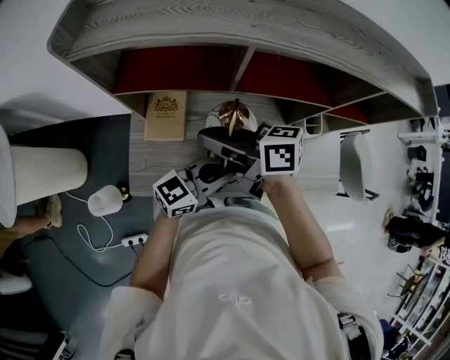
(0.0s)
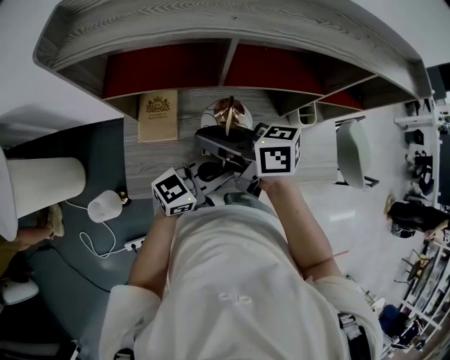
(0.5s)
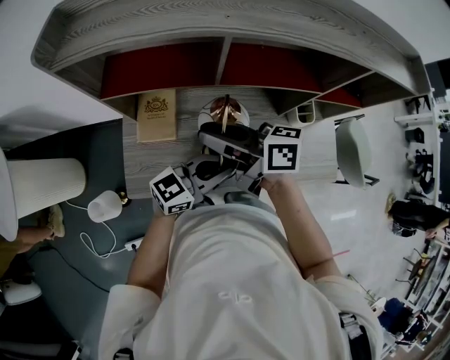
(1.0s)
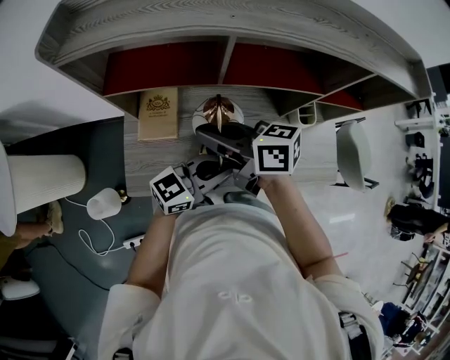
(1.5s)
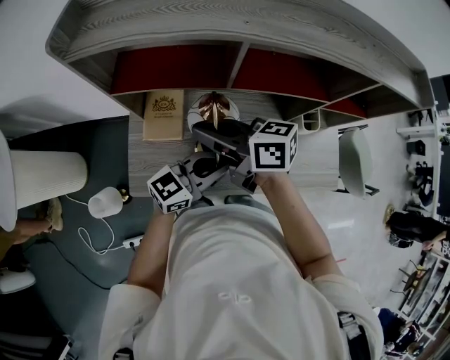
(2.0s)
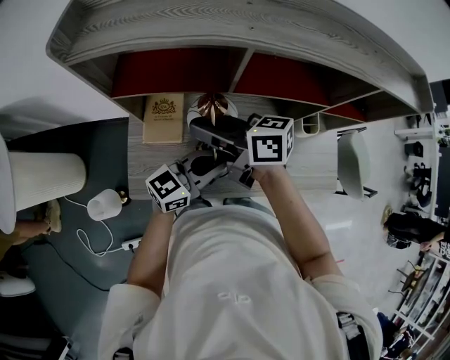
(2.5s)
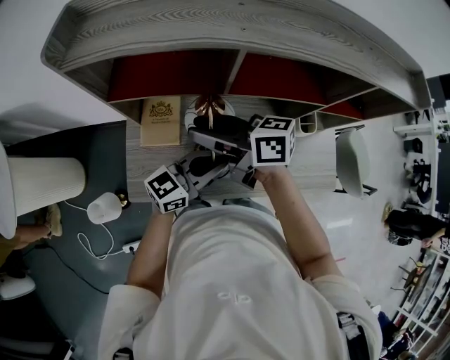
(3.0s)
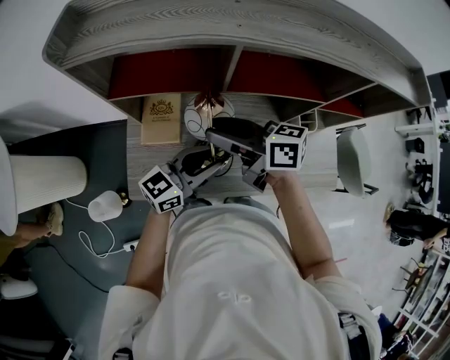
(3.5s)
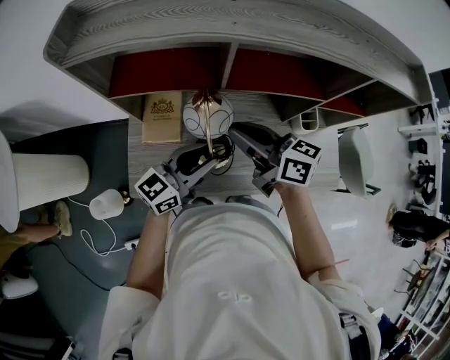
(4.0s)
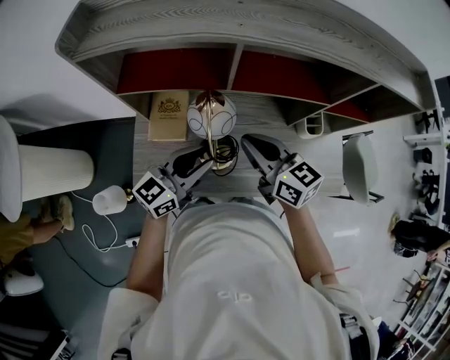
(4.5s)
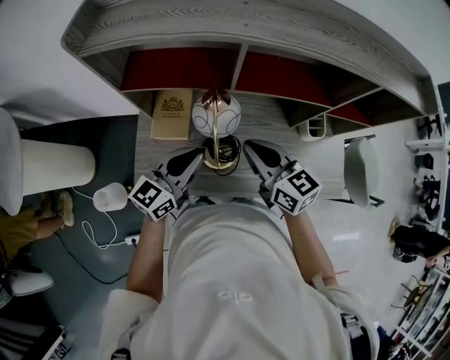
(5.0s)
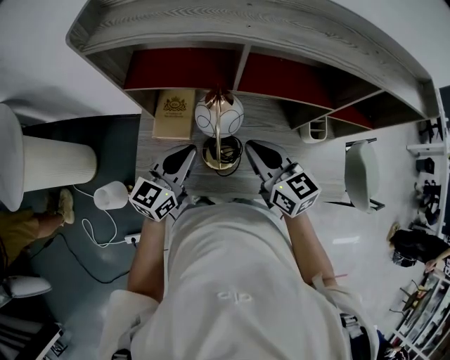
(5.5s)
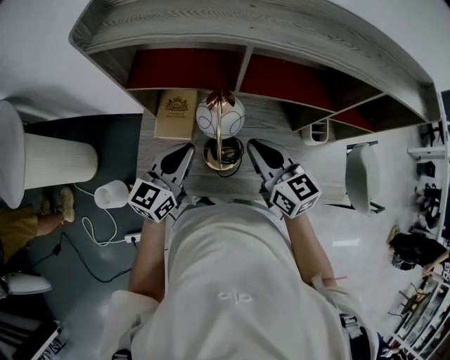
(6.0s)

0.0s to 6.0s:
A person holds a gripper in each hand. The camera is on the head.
0.0s to 2.0s: The grippers move only a little.
2.0s to 4.0s: The right gripper shifts by some 10 cm, and opens, then closes once more, while the left gripper opens.
4.0s to 6.0s: The left gripper shifts roughly 10 cm to the left, turns by about 30 degrees, and closes its fingers; the right gripper rotates approximately 30 degrees.

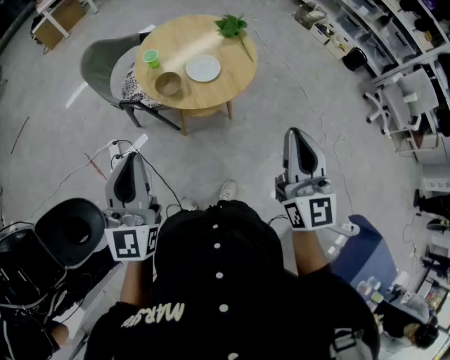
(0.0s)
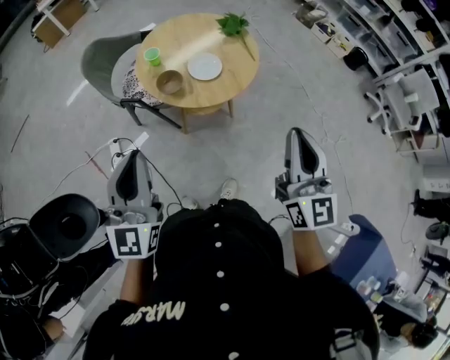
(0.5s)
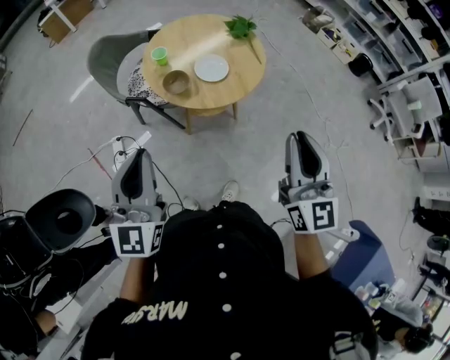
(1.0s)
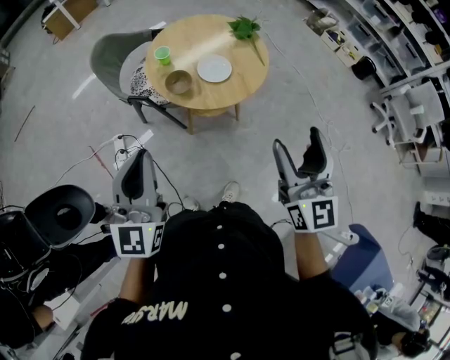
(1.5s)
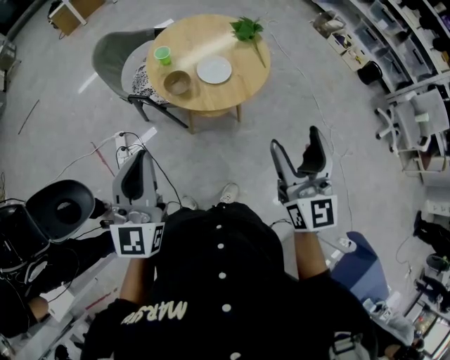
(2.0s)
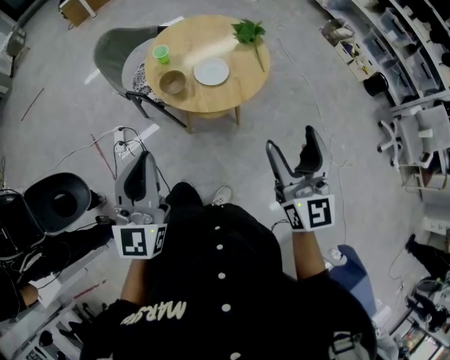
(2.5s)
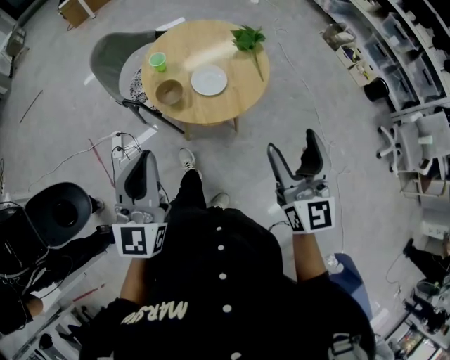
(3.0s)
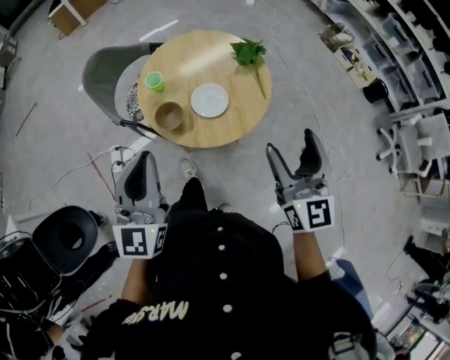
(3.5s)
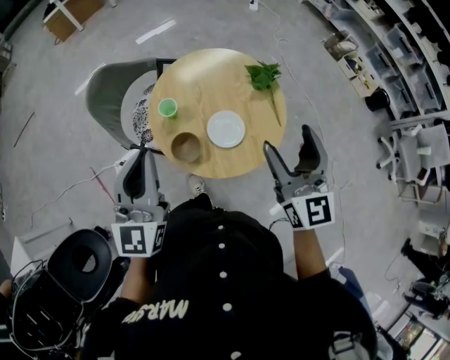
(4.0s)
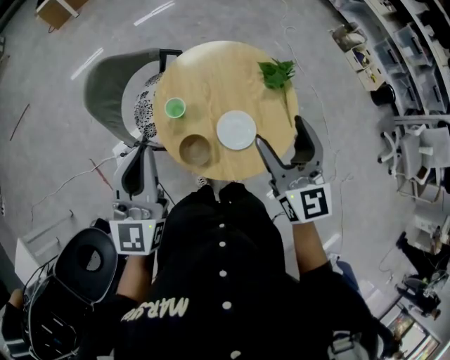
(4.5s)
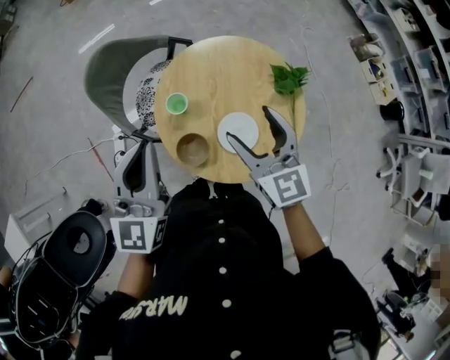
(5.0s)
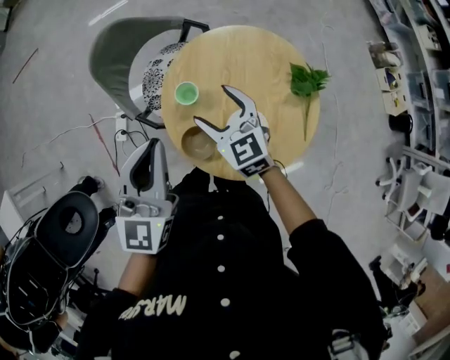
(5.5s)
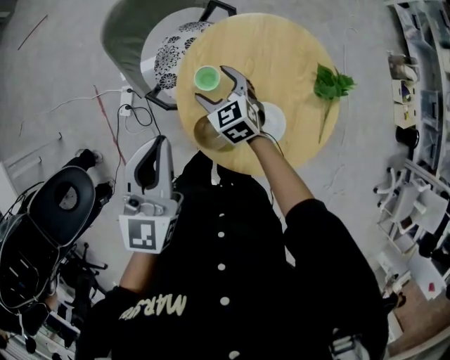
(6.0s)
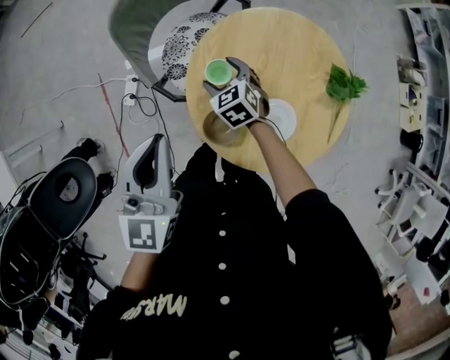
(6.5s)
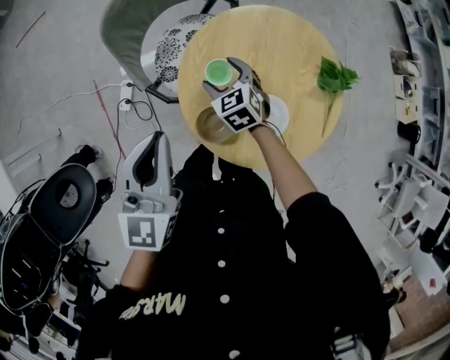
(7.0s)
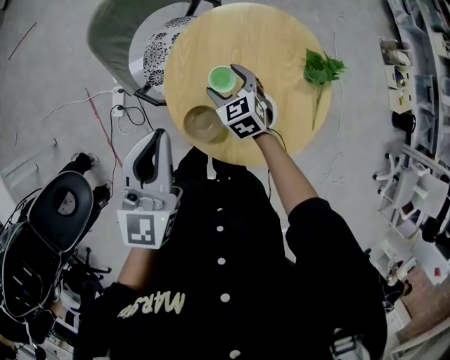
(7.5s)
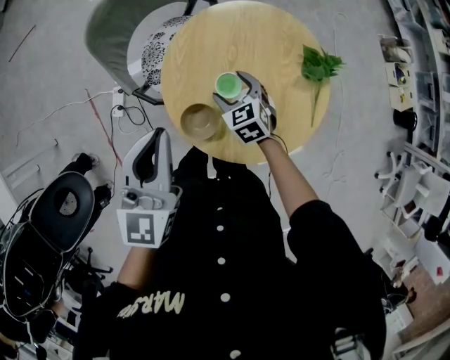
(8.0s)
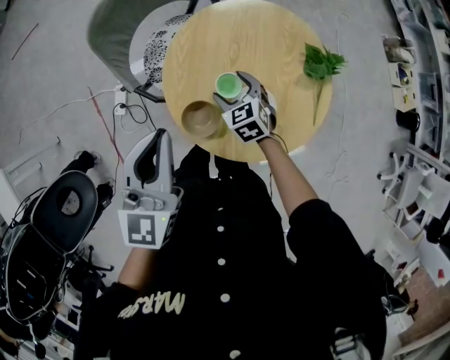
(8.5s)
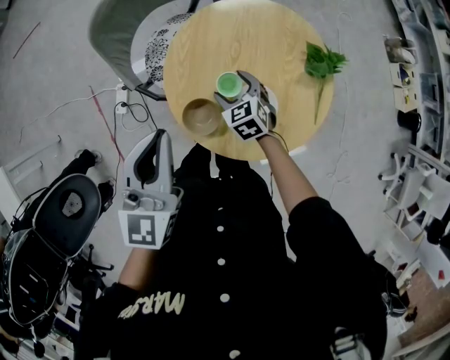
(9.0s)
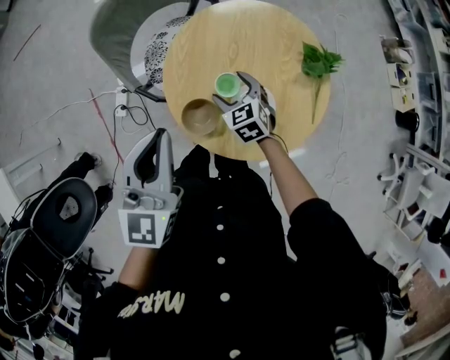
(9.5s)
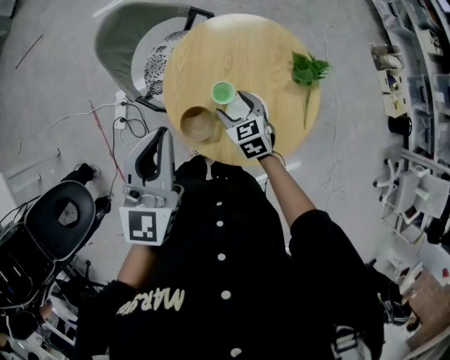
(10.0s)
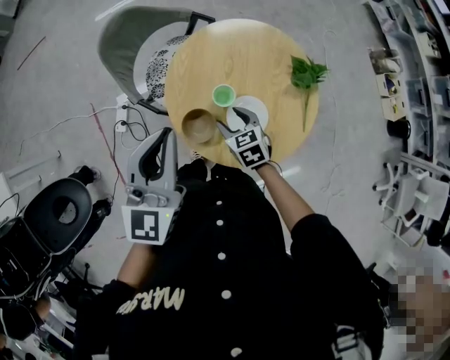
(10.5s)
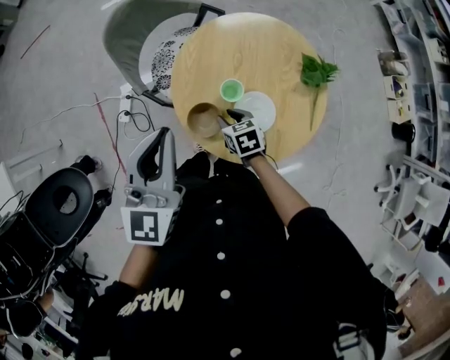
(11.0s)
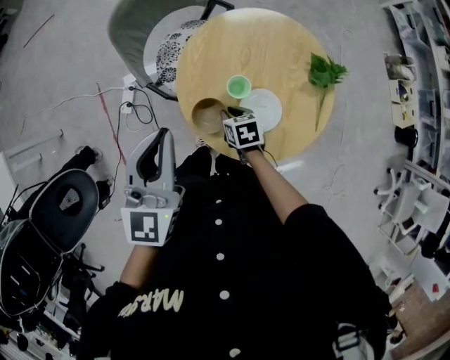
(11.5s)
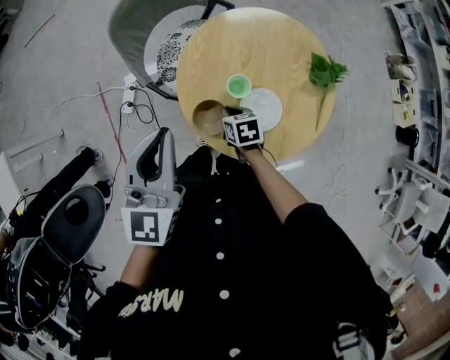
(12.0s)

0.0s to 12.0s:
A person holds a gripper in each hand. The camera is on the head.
0.0s to 2.0s: The right gripper opens its fingers.
2.0s to 4.0s: The two grippers go approximately 35 cm forward.
4.0s to 6.0s: The left gripper travels downward by some 10 cm, and changes its angle by roughly 20 degrees. The right gripper ends up about 50 cm from where it was, and tilts its fingers about 40 degrees downward.
6.0s to 8.0s: The right gripper goes some 10 cm to the right and backward.
8.0s to 10.0s: The right gripper goes approximately 5 cm backward; the left gripper ends up some 5 cm from where it was.
10.0s to 12.0s: The right gripper heads downward and to the left, covering approximately 10 cm, rotates roughly 30 degrees, and closes.

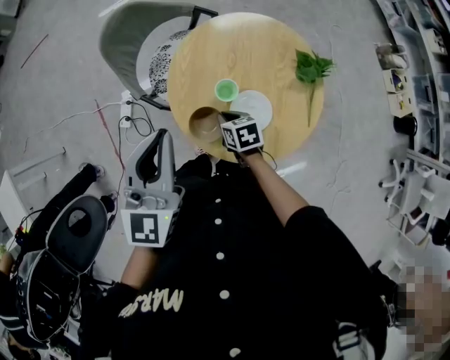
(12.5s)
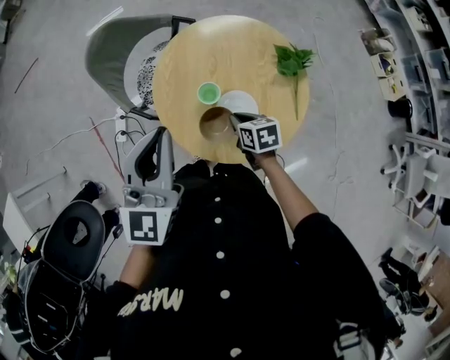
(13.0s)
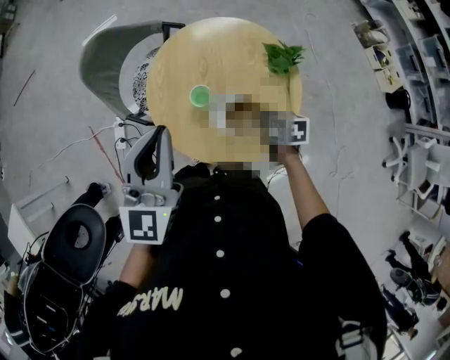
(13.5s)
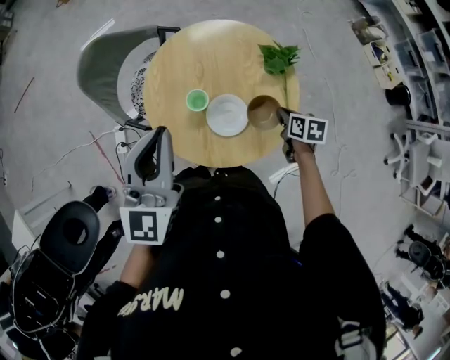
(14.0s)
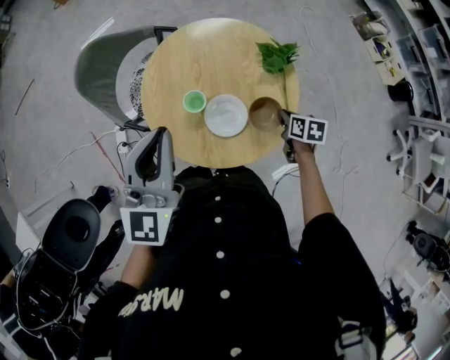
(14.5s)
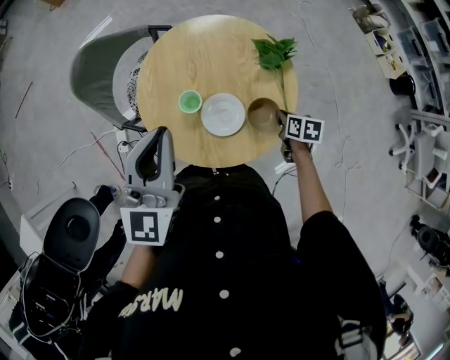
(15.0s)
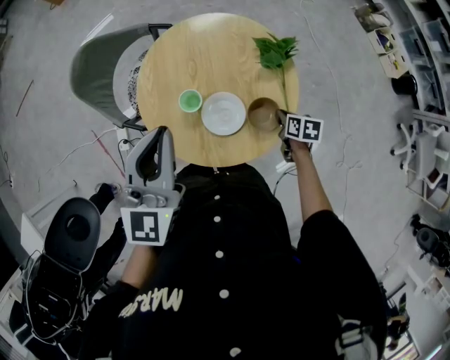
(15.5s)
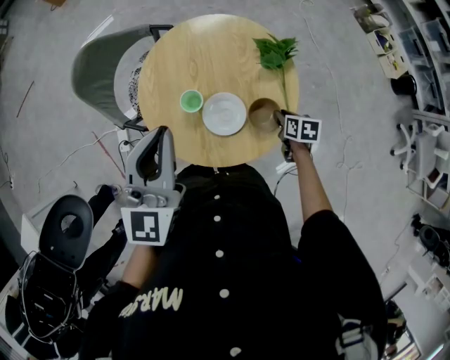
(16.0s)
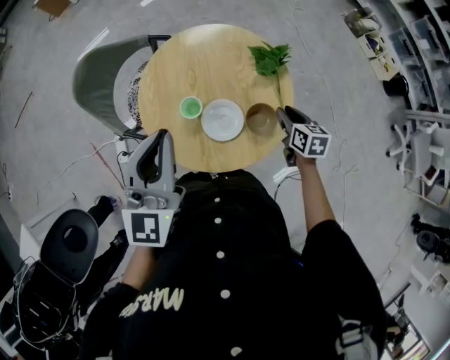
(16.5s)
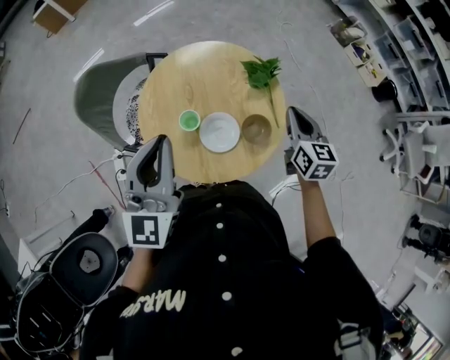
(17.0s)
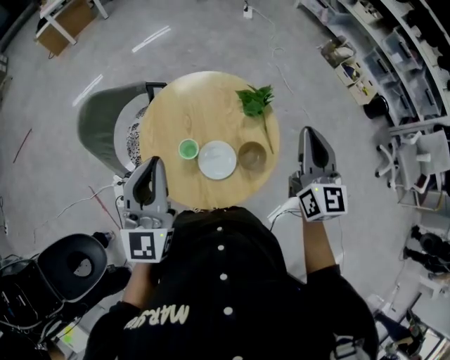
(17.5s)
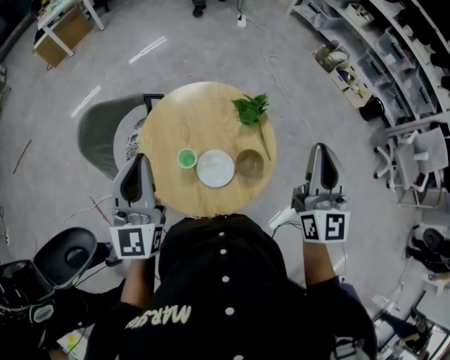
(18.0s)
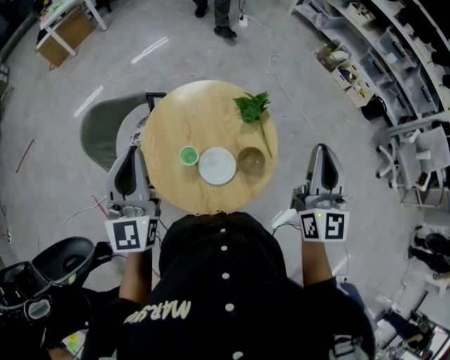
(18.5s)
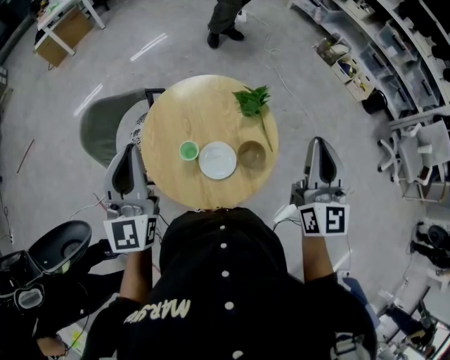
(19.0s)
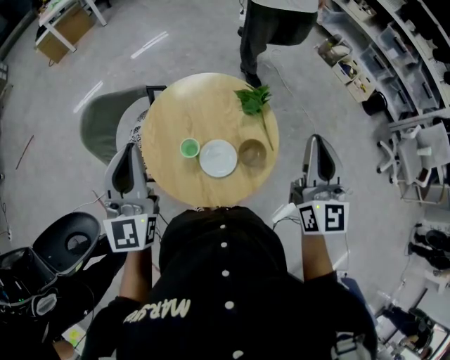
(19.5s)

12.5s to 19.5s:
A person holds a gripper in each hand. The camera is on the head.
12.5s to 14.5s: The left gripper is displaced to the right by about 10 cm, while the right gripper moves to the right, approximately 30 cm, and rotates approximately 30 degrees.
14.5s to 16.0s: There are only small adjustments of the grippers.
16.0s to 17.5s: The right gripper goes about 40 cm upward, and angles its fingers upward, by about 60 degrees. Meanwhile the left gripper changes place by roughly 5 cm.
17.5s to 19.5s: The right gripper travels upward and backward by roughly 5 cm. Meanwhile the left gripper ends up approximately 5 cm from where it was.

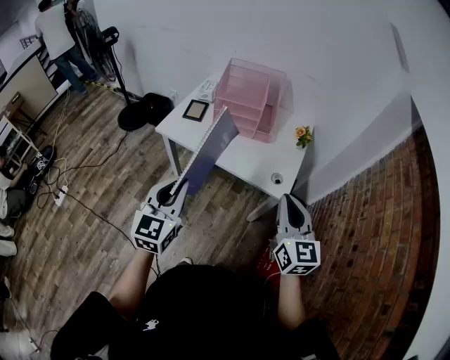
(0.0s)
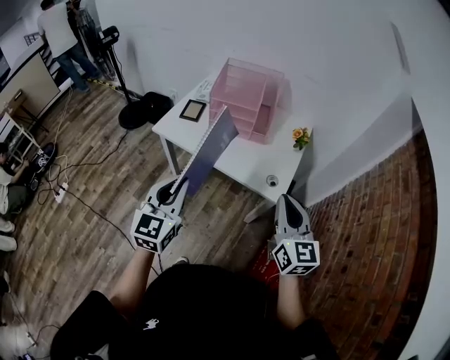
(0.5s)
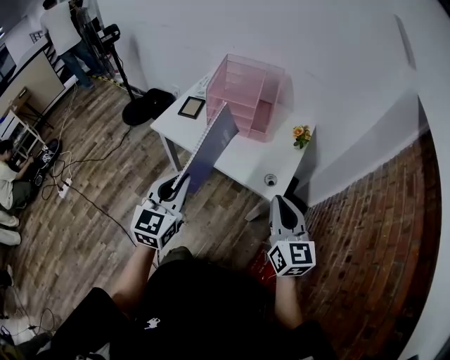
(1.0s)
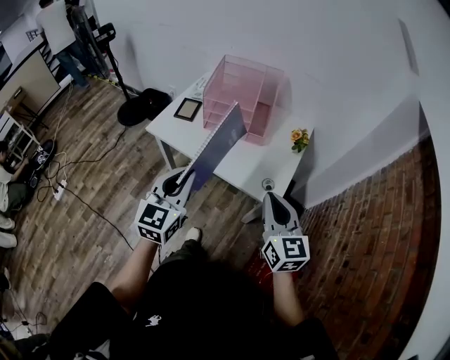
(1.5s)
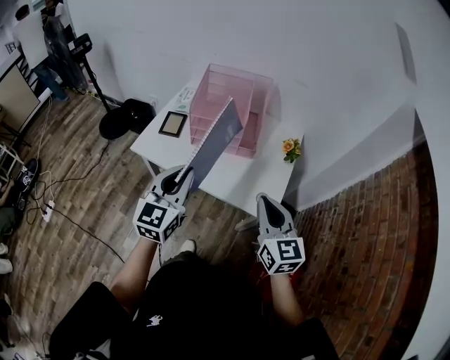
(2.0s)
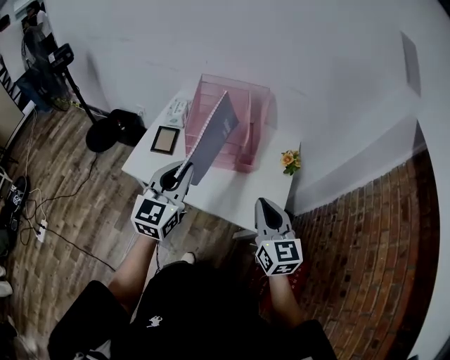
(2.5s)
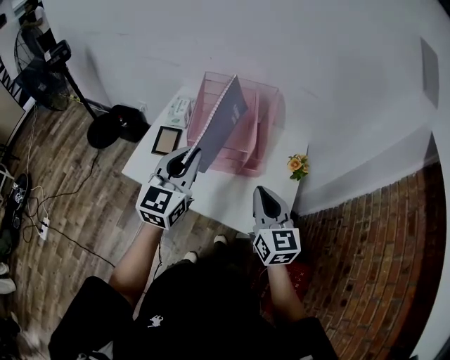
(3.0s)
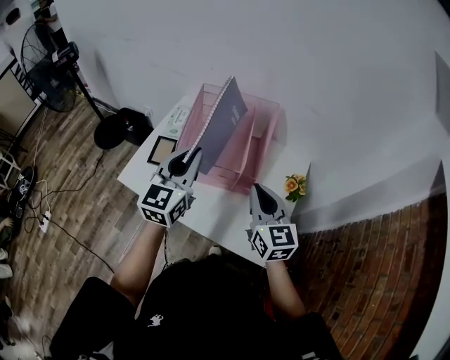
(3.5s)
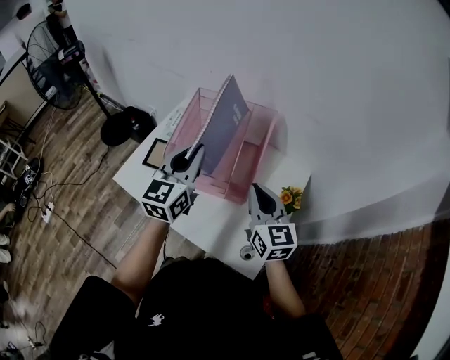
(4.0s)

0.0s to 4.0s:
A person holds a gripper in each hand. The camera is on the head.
0.0s to 2.0s: The grippers both shift forward by about 15 cm.
2.0s to 4.0s: Both grippers move forward, approximately 30 cm.
